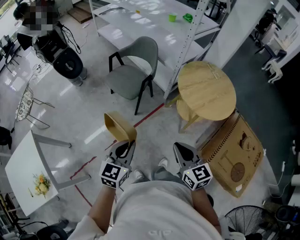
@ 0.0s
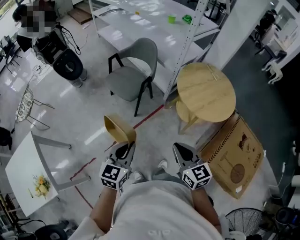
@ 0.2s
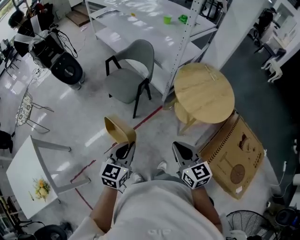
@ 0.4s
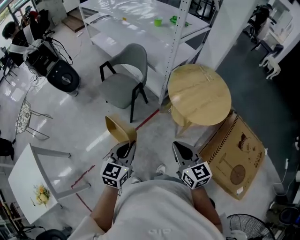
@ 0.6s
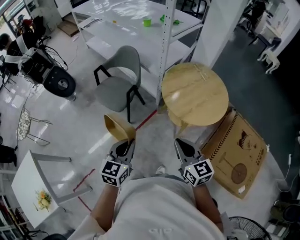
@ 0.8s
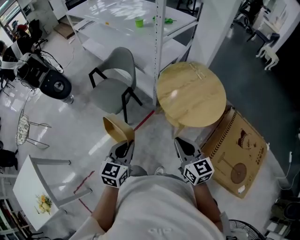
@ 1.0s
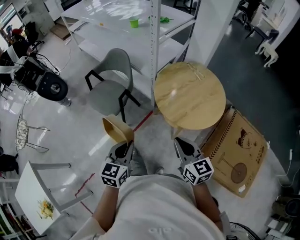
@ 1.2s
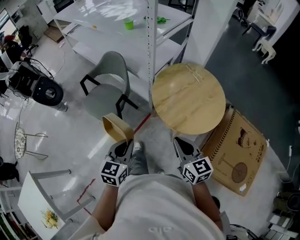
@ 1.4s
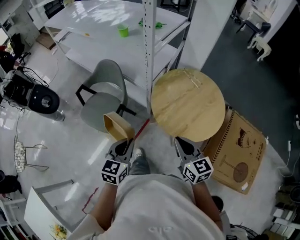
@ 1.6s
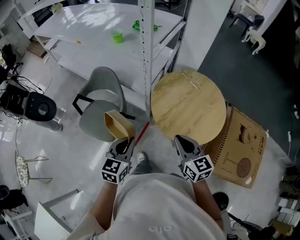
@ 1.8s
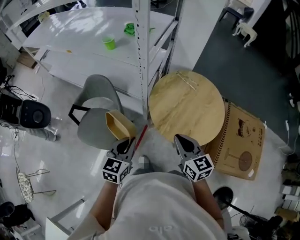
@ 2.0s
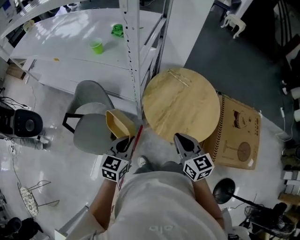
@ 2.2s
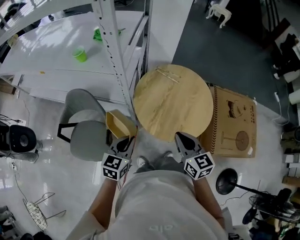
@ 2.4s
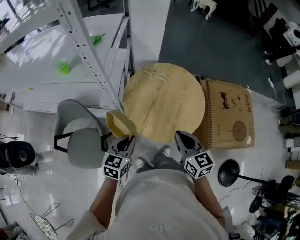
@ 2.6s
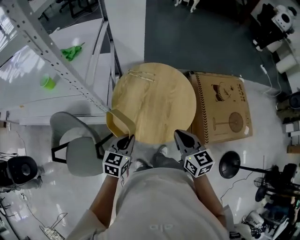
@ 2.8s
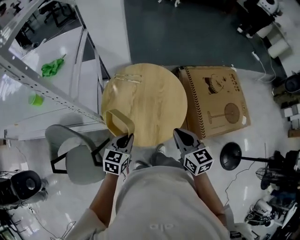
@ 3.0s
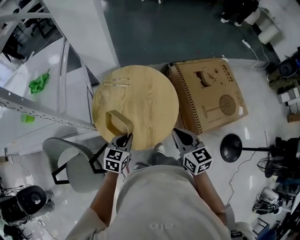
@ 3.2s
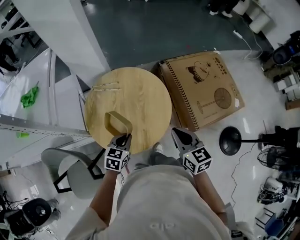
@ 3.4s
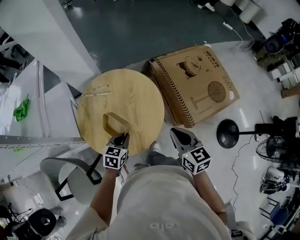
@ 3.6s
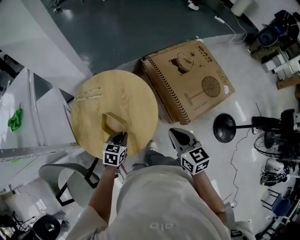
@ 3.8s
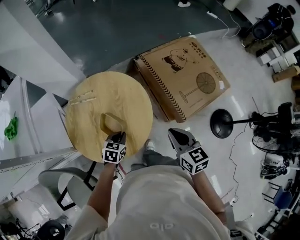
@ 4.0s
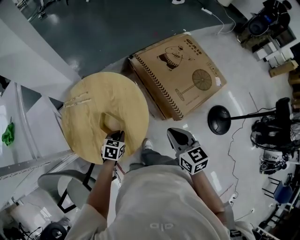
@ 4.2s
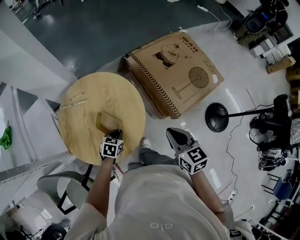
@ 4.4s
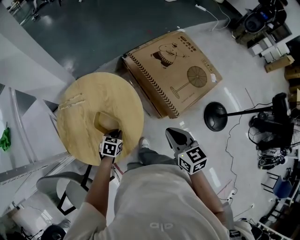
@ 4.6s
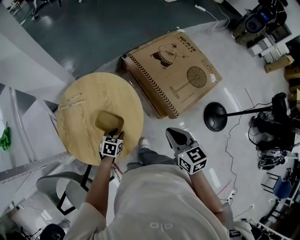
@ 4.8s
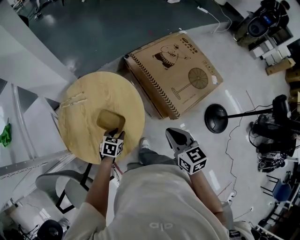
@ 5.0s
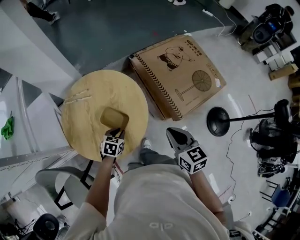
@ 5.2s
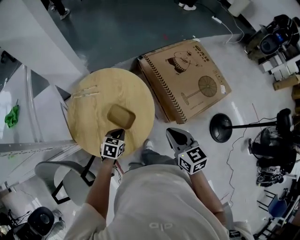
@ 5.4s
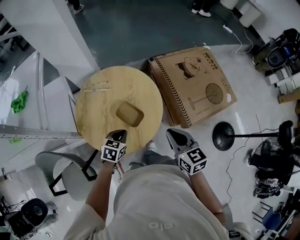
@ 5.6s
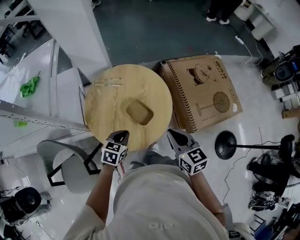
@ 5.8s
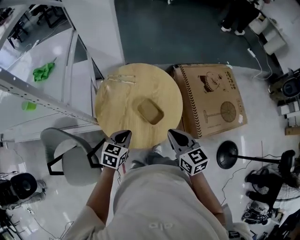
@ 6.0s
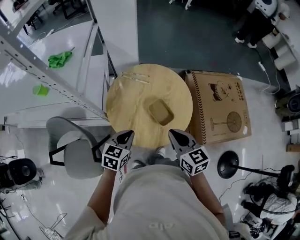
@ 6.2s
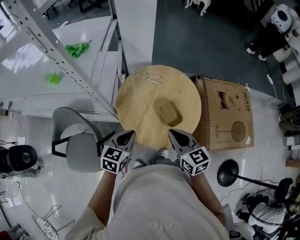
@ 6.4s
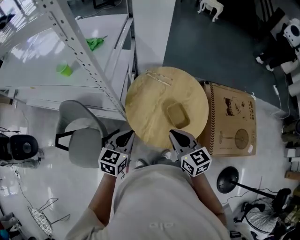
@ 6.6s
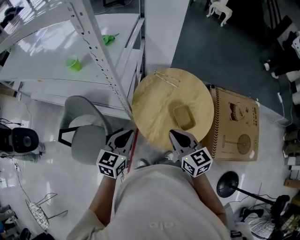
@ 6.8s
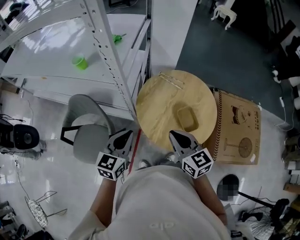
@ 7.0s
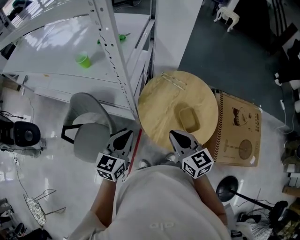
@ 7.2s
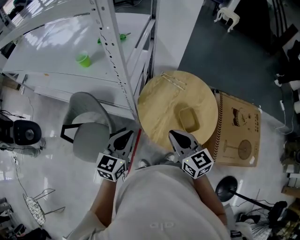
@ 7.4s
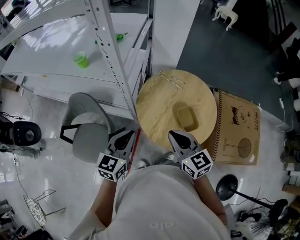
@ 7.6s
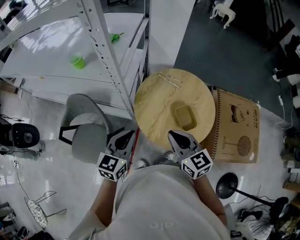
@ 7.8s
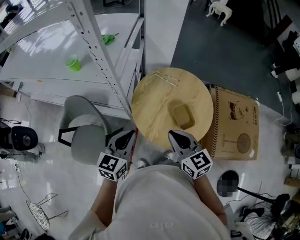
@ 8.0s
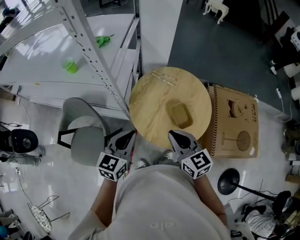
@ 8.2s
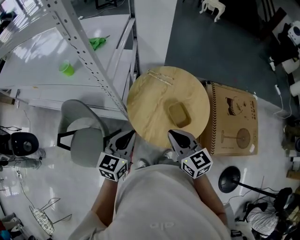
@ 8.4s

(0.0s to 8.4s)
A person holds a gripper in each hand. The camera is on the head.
0.0s - 1.4s: The grippers both shift forward and to the right by approximately 30 cm.
1.4s - 2.8s: The right gripper shifts by roughly 15 cm, and swivels some 40 degrees; the left gripper ends up roughly 30 cm from where it was, and turns by roughly 50 degrees.
2.8s - 4.2s: The right gripper ends up roughly 25 cm from where it was, and swivels approximately 30 degrees; the left gripper moves approximately 30 cm, and rotates approximately 40 degrees.
4.2s - 5.6s: The right gripper shifts roughly 5 cm to the left. The left gripper is displaced upward, to the left and backward by roughly 10 cm, and opens, then closes again.
5.6s - 7.0s: The left gripper moves approximately 35 cm, and changes its angle by approximately 50 degrees, while the right gripper shifts by roughly 30 cm, and turns by some 40 degrees.
7.0s - 8.4s: The left gripper is displaced to the right by approximately 5 cm.

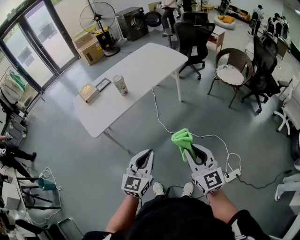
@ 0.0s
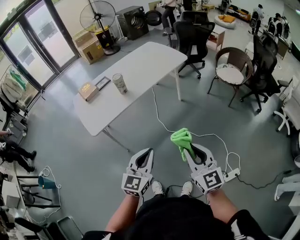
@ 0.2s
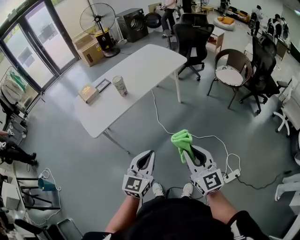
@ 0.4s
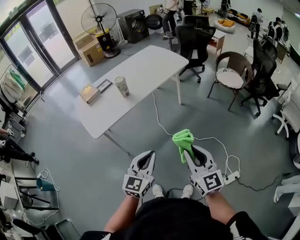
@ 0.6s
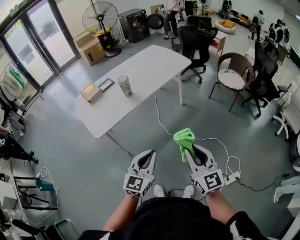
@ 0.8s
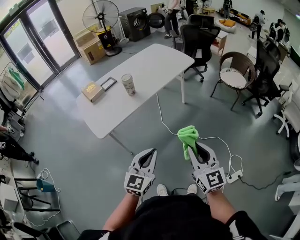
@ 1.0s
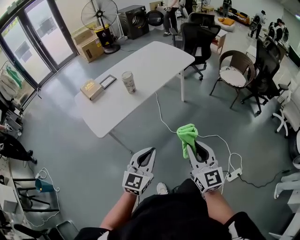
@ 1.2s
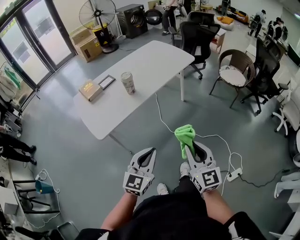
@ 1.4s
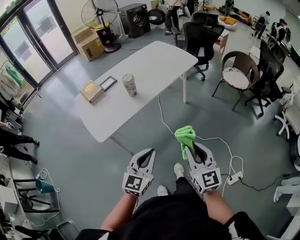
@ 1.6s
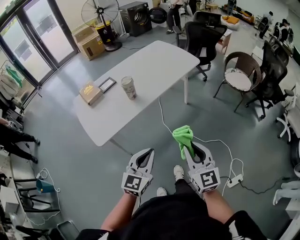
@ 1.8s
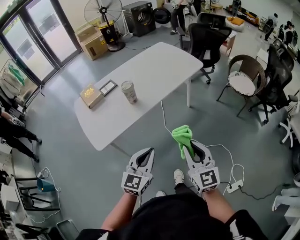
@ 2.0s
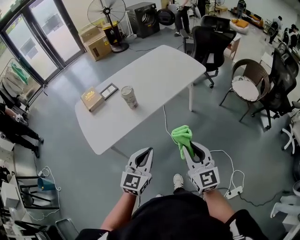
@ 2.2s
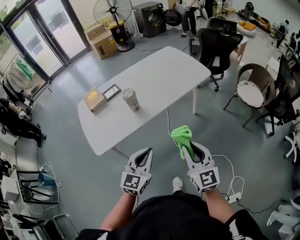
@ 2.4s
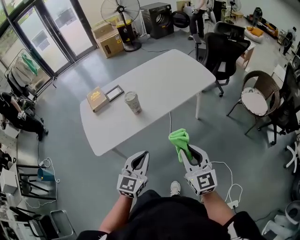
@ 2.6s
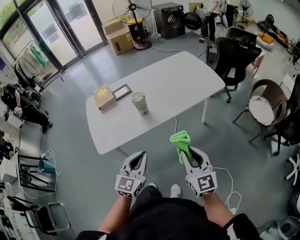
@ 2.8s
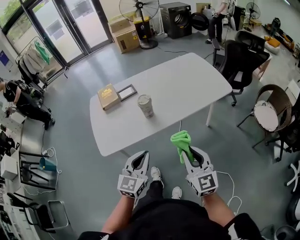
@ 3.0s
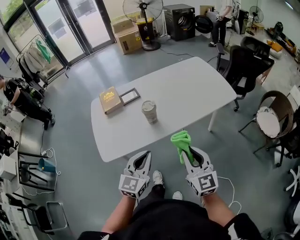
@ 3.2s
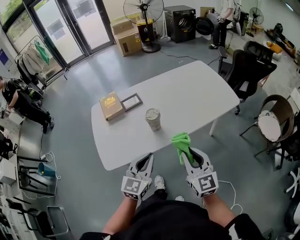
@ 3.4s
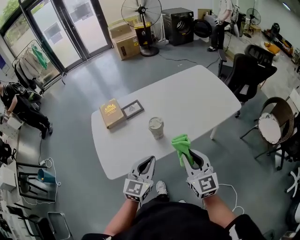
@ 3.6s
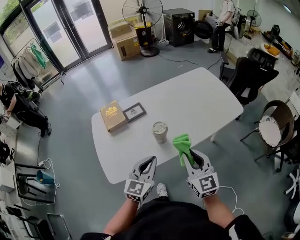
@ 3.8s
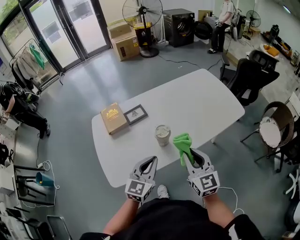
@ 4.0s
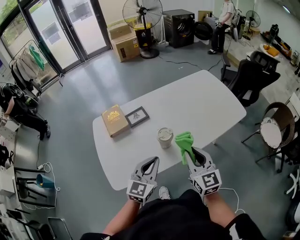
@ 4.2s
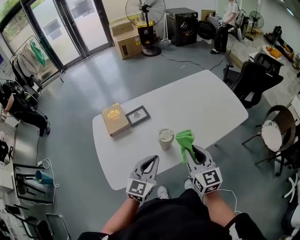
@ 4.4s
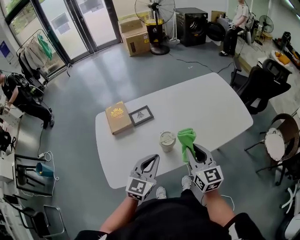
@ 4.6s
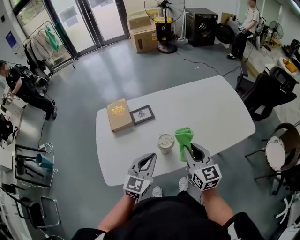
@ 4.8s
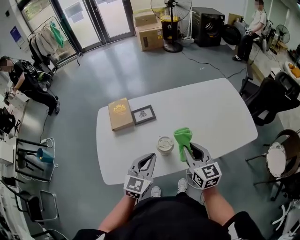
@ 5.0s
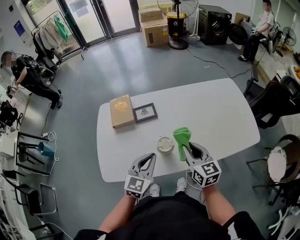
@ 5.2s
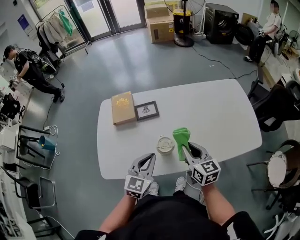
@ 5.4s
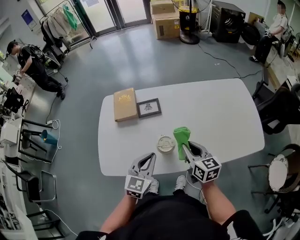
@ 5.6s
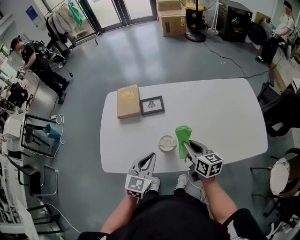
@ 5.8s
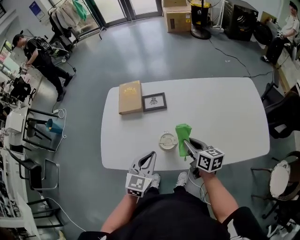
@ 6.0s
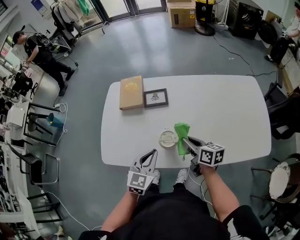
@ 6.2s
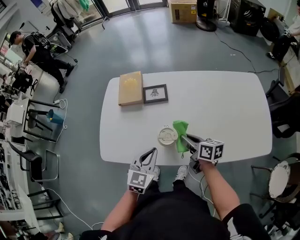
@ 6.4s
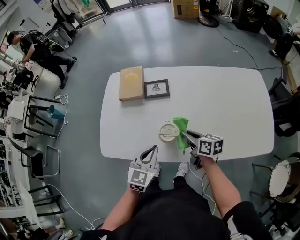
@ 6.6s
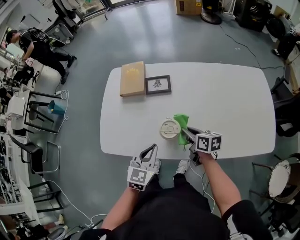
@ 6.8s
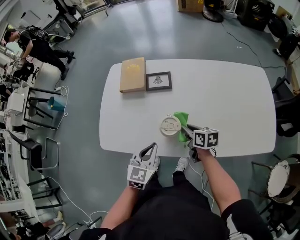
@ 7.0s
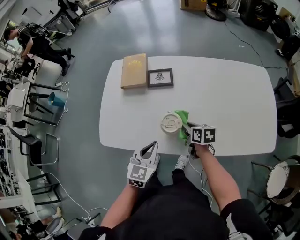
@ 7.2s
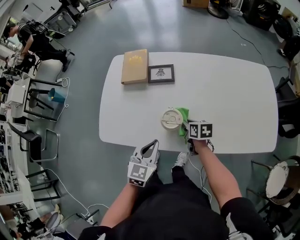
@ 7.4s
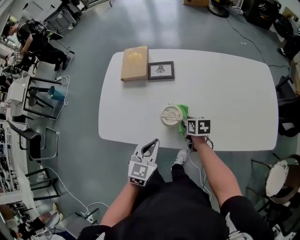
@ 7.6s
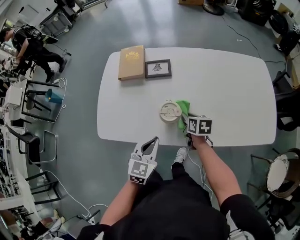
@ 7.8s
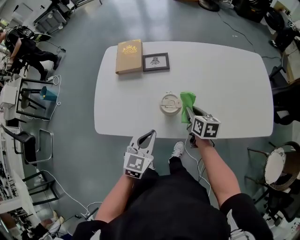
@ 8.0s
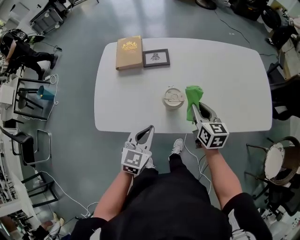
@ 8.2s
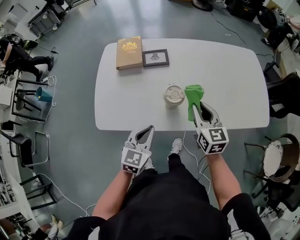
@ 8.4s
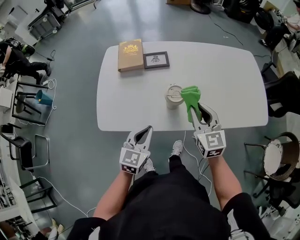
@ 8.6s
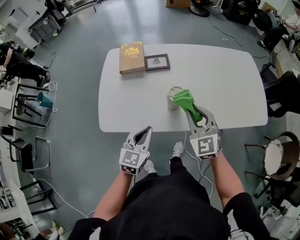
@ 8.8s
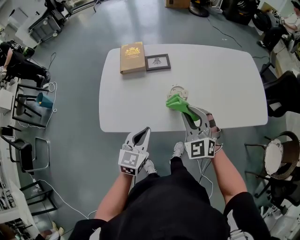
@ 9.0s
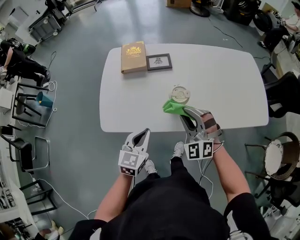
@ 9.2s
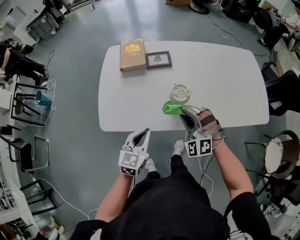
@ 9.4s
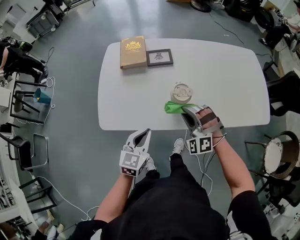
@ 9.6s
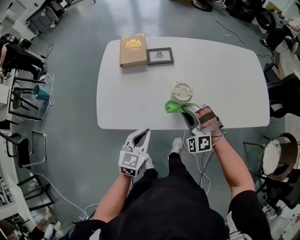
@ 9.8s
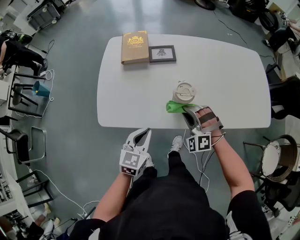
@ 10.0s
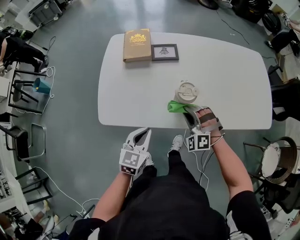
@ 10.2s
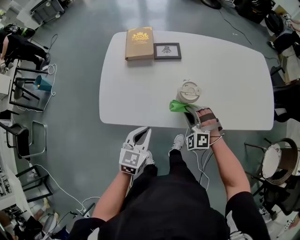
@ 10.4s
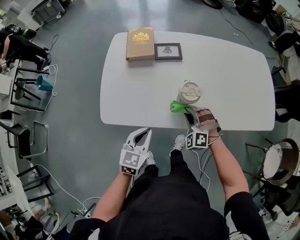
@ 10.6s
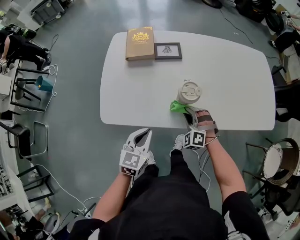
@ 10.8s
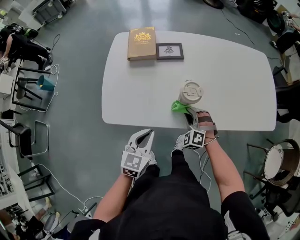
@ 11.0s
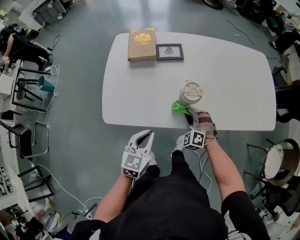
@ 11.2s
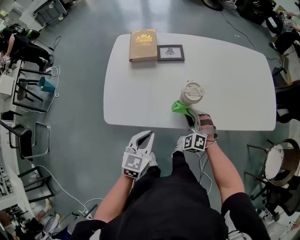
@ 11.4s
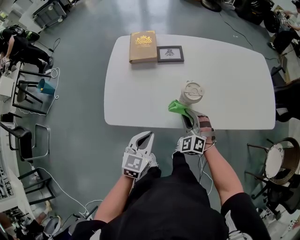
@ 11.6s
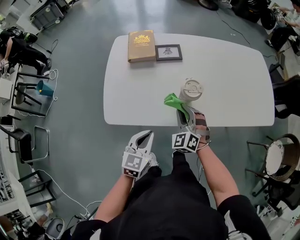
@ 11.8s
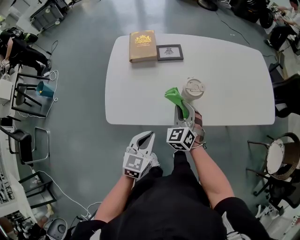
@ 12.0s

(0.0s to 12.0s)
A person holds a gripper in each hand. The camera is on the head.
0.0s - 1.6s: Both grippers travel together to the left and forward, approximately 10 cm.
1.6s - 3.0s: Both grippers travel together forward, some 25 cm. The left gripper rotates about 20 degrees; the right gripper turns by about 20 degrees.
3.0s - 4.4s: Both grippers move forward and to the left, roughly 25 cm.
4.4s - 6.0s: The right gripper changes place by some 20 cm, and changes its angle by roughly 50 degrees. The left gripper shifts roughly 5 cm downward, and rotates some 30 degrees.
6.0s - 7.6s: The right gripper travels downward by about 15 cm, and rotates approximately 30 degrees. Meanwhile the left gripper shifts some 5 cm downward.
7.6s - 9.0s: The left gripper travels to the left by about 10 cm; the right gripper heads upward and backward, covering some 25 cm, and rotates around the line of its fingers by some 70 degrees, counterclockwise from behind.
9.0s - 10.4s: The right gripper is displaced downward by about 15 cm, and rotates some 30 degrees. The left gripper ends up some 5 cm from where it was.
10.4s - 12.0s: The right gripper shifts about 5 cm to the left and upward, and rolls clockwise, seen from behind, by approximately 40 degrees.

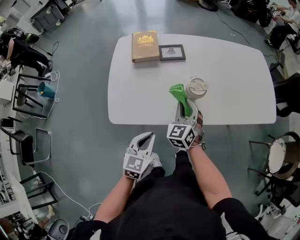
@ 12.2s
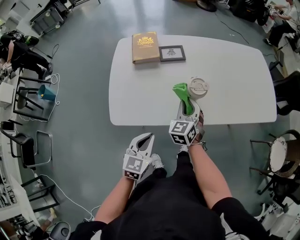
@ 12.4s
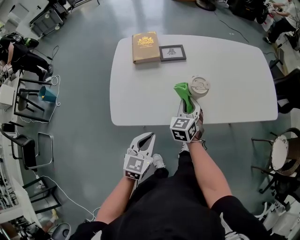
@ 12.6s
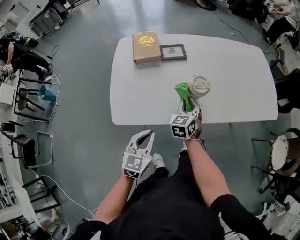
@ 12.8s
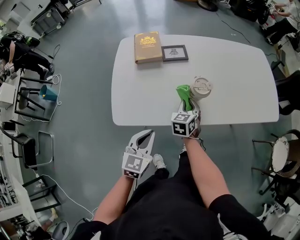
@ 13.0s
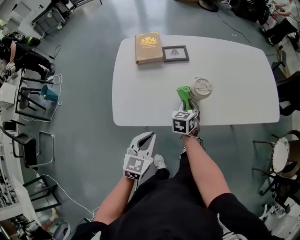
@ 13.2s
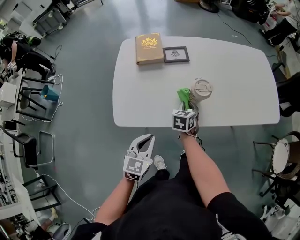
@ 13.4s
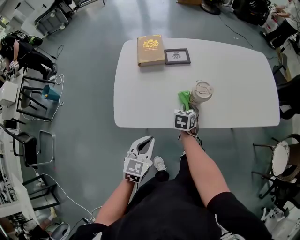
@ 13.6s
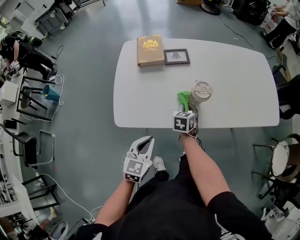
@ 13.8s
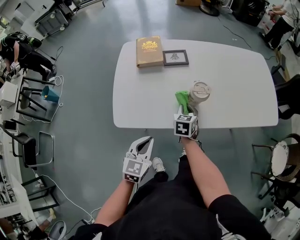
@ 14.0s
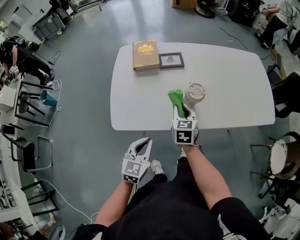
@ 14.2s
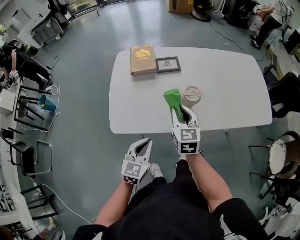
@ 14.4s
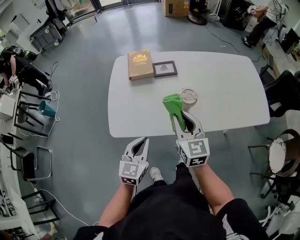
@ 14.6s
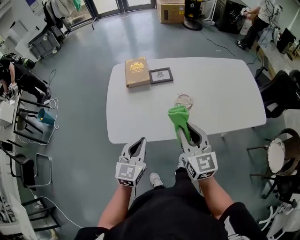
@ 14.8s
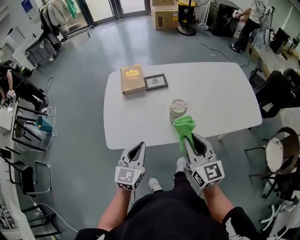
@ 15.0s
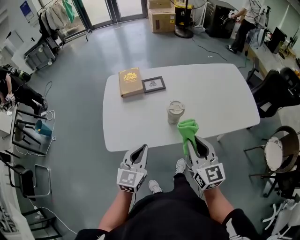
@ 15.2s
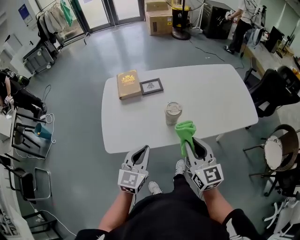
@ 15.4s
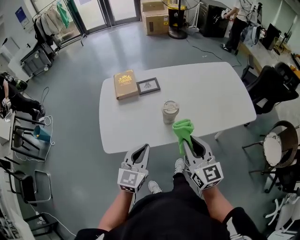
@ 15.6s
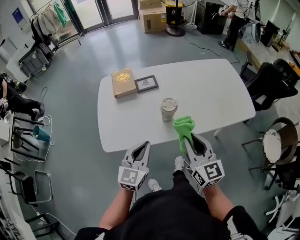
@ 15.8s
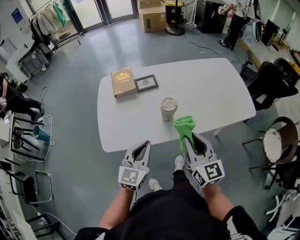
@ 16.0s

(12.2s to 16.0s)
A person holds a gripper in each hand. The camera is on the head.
12.2s - 13.4s: The right gripper goes about 10 cm downward, and changes its angle by about 30 degrees.
13.4s - 14.8s: The left gripper shifts approximately 10 cm upward, while the right gripper travels upward and backward by some 25 cm, and points its fingers some 40 degrees further upward.
14.8s - 16.0s: The grippers both shift to the right by approximately 5 cm.
